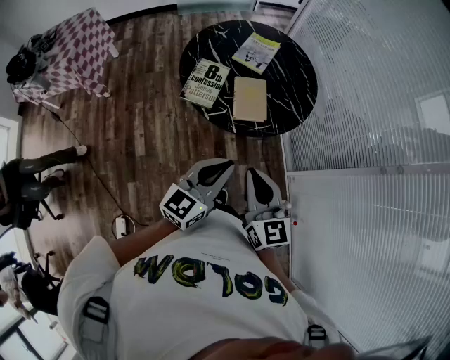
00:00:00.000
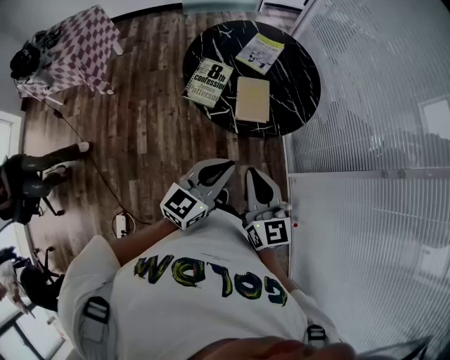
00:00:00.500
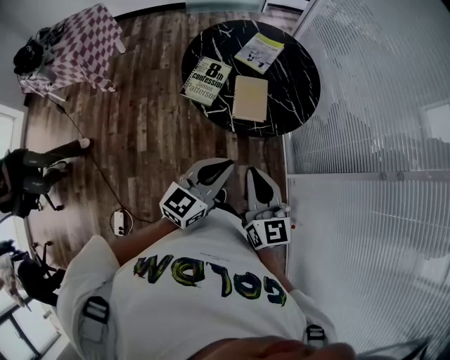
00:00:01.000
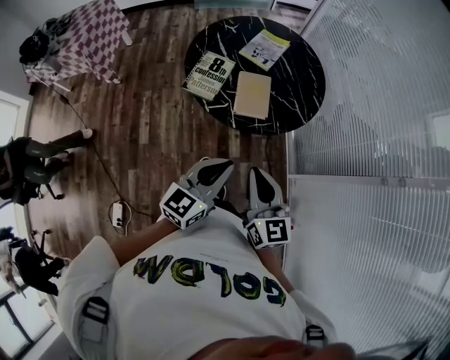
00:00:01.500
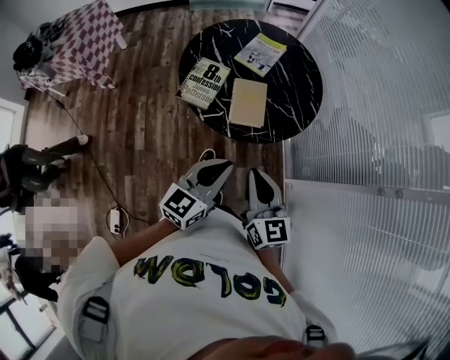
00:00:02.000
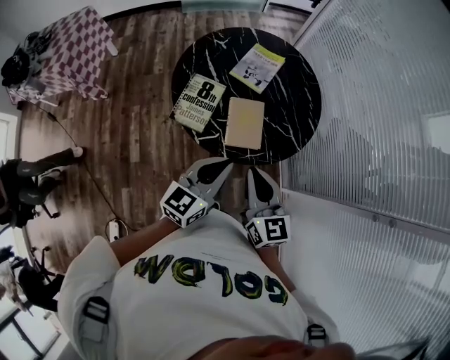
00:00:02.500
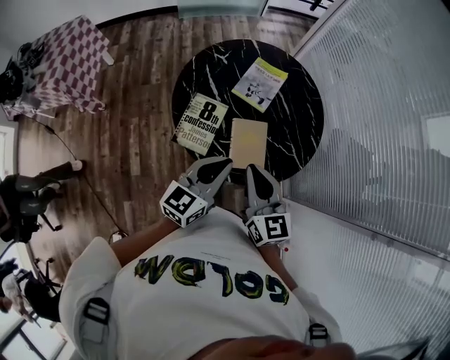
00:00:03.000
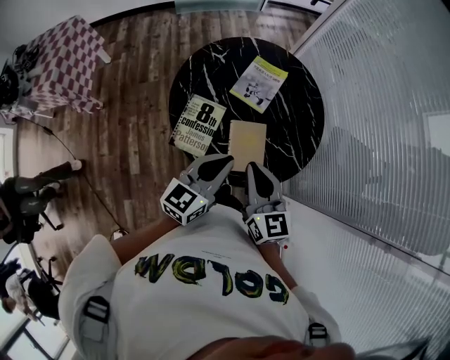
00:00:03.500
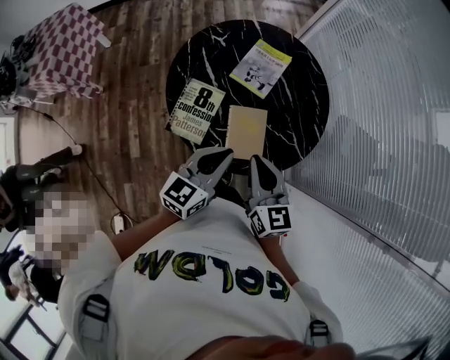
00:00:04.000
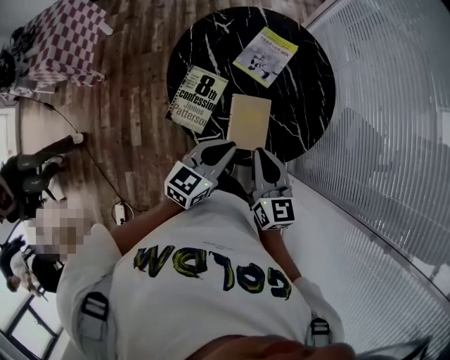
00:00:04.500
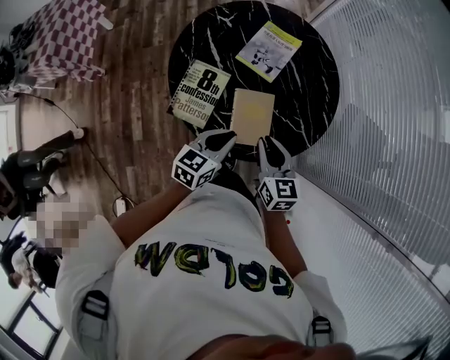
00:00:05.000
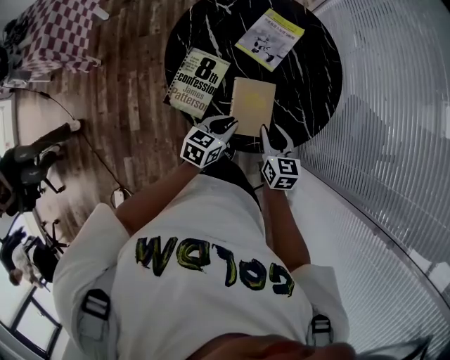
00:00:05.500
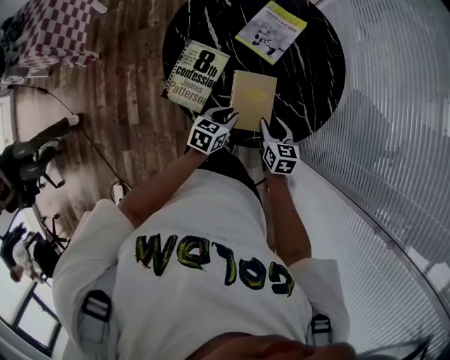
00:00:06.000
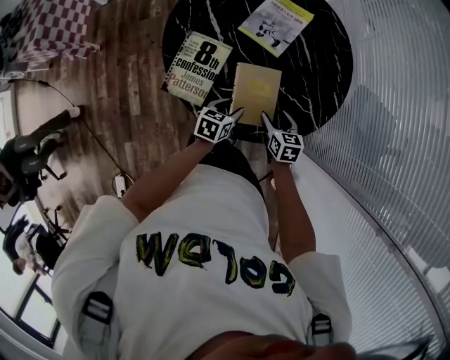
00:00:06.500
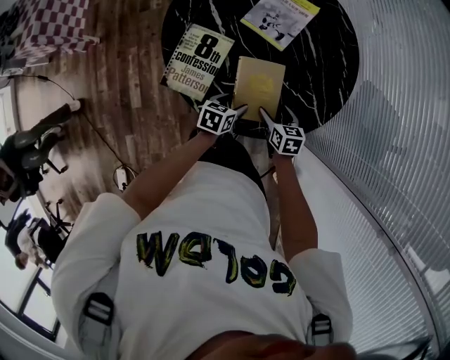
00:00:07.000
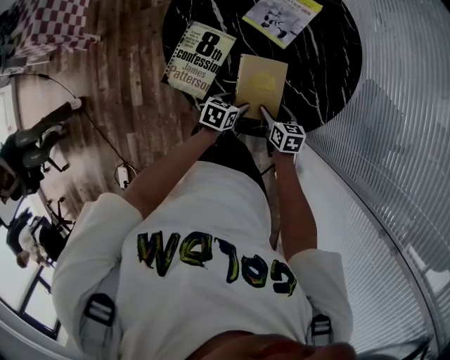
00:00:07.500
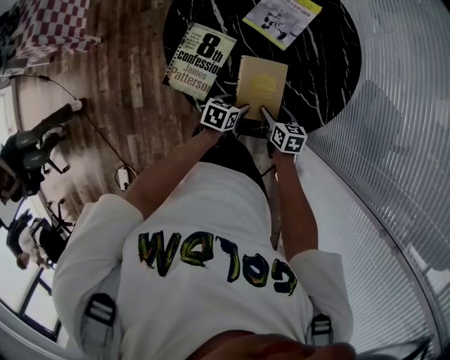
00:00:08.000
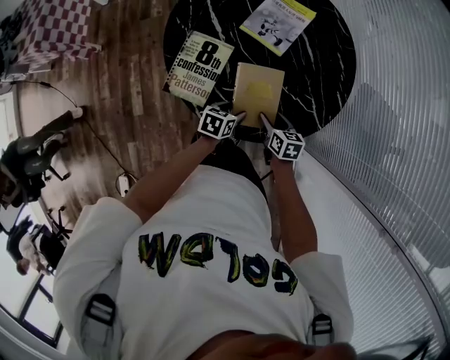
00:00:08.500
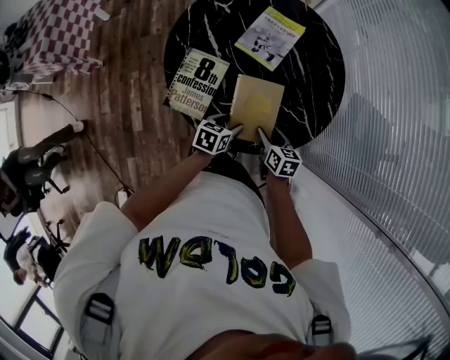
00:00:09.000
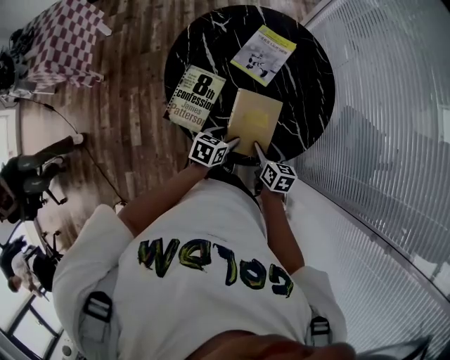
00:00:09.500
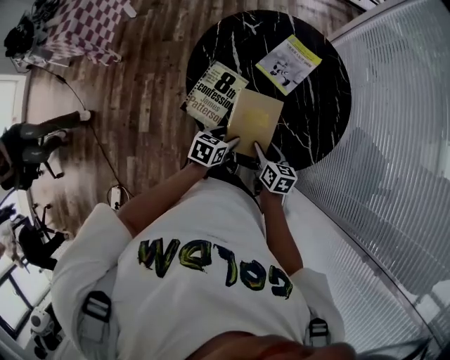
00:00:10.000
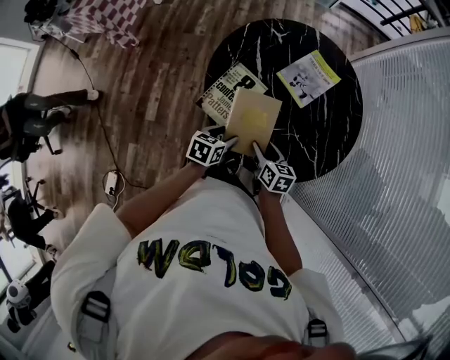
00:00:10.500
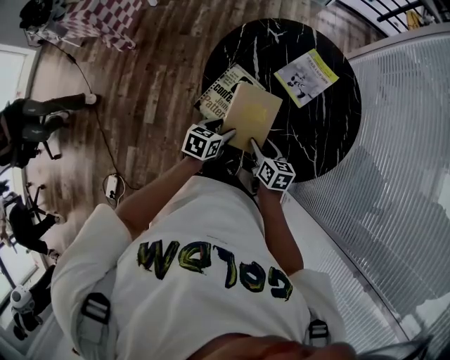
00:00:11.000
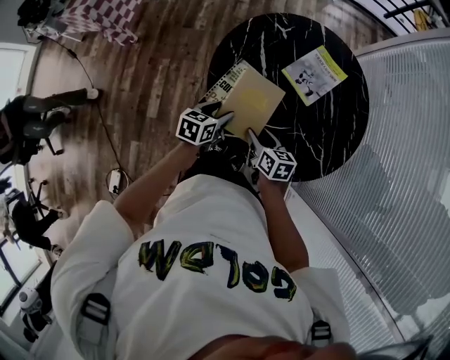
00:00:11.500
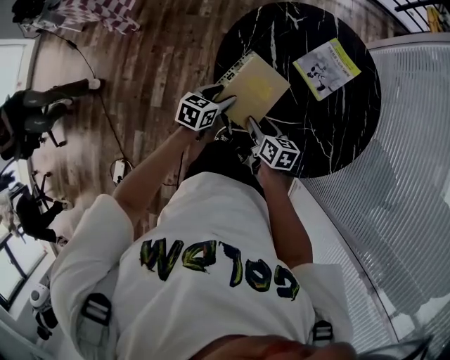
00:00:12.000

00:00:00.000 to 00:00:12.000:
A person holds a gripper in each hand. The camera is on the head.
00:00:00.000 to 00:00:02.000: The right gripper heads forward and to the right, covering approximately 5 cm. The left gripper shifts by about 5 cm.
00:00:02.000 to 00:00:04.000: The grippers both shift forward by roughly 25 cm.
00:00:04.000 to 00:00:06.000: Both grippers move downward, some 25 cm. The left gripper swivels approximately 30 degrees. Meanwhile the right gripper swivels about 30 degrees, and opens its fingers.
00:00:06.000 to 00:00:08.000: Both grippers travel together downward, roughly 10 cm. The left gripper opens up. Meanwhile the right gripper opens.
00:00:08.000 to 00:00:10.000: The two grippers go approximately 10 cm upward and to the left.
00:00:10.000 to 00:00:12.000: The left gripper shifts roughly 20 cm to the left and forward. The right gripper travels to the left by some 15 cm.

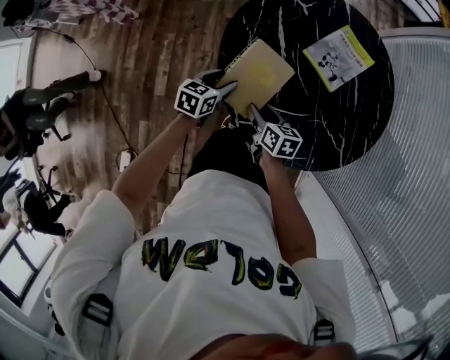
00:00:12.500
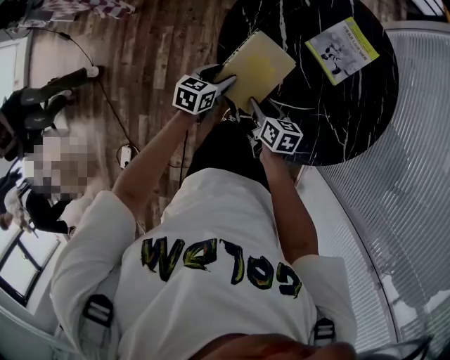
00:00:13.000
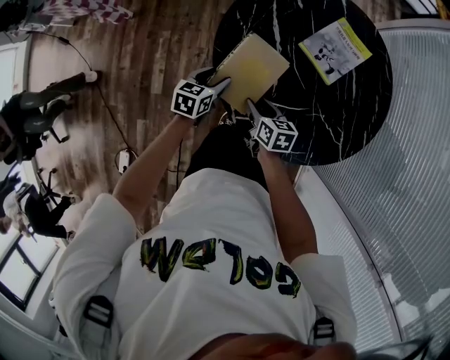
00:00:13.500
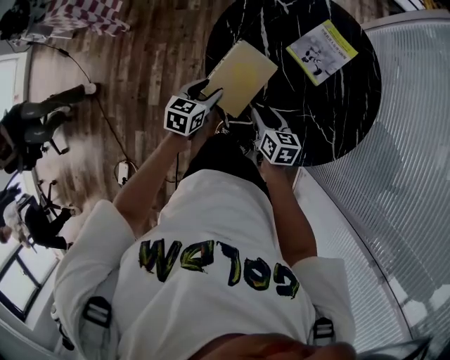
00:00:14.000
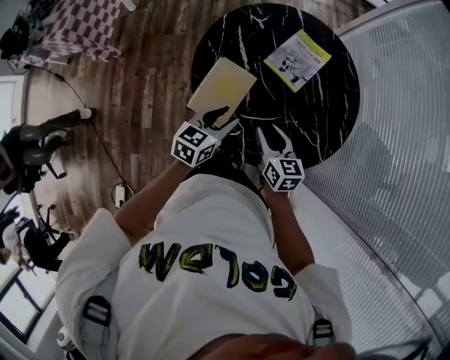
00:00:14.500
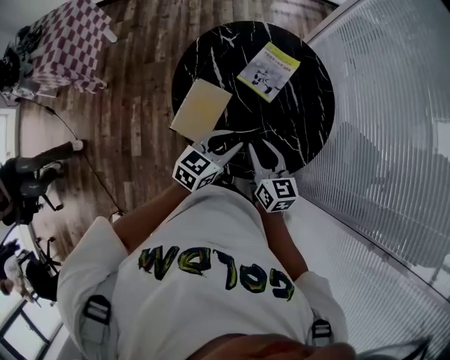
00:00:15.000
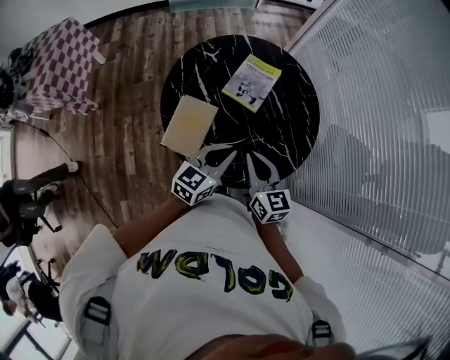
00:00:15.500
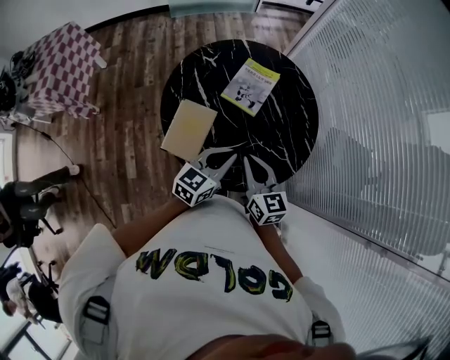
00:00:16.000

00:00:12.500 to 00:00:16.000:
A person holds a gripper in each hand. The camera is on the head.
00:00:12.500 to 00:00:14.500: The left gripper moves upward, to the right and backward, some 20 cm. The right gripper shifts some 15 cm upward and to the right, and rotates about 20 degrees.
00:00:14.500 to 00:00:16.000: The right gripper heads upward and to the right, covering some 10 cm, and closes up. The left gripper is displaced to the right and upward by roughly 15 cm, and closes its fingers.

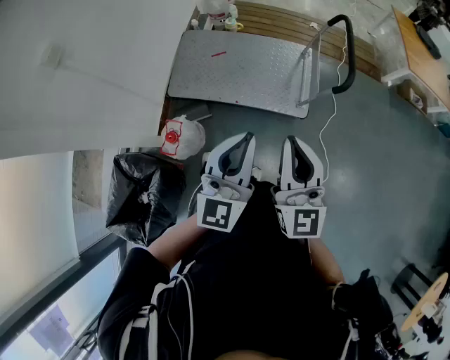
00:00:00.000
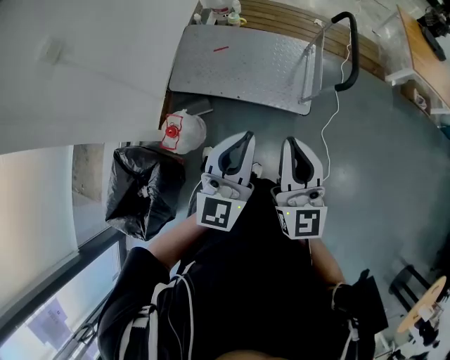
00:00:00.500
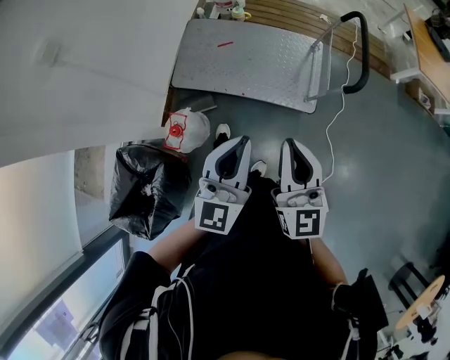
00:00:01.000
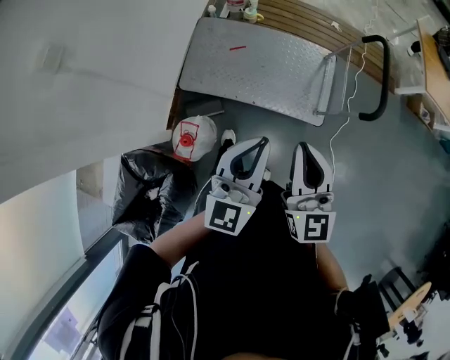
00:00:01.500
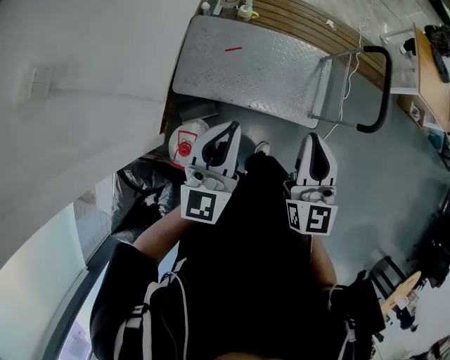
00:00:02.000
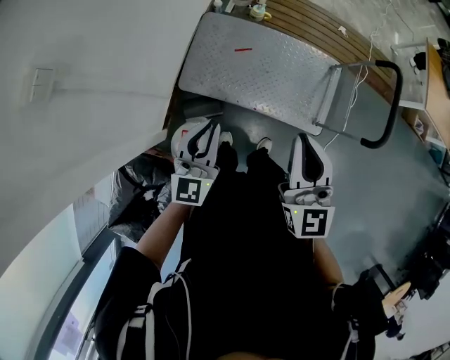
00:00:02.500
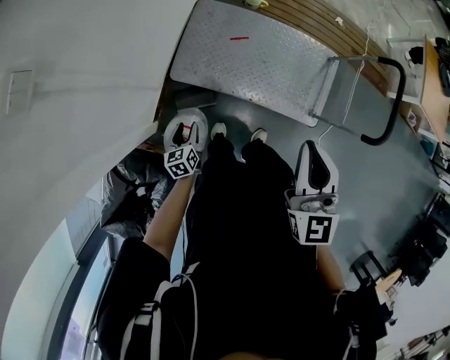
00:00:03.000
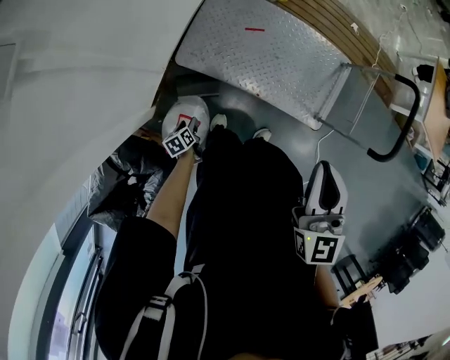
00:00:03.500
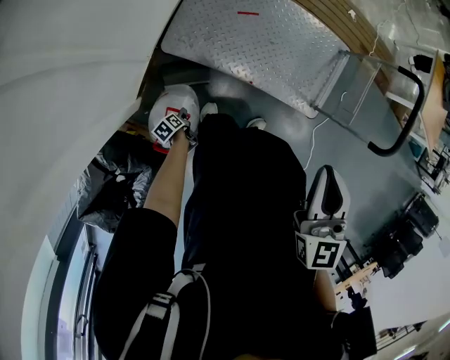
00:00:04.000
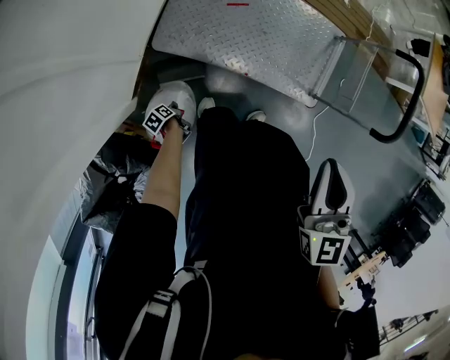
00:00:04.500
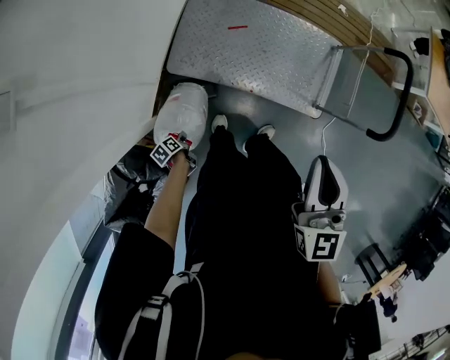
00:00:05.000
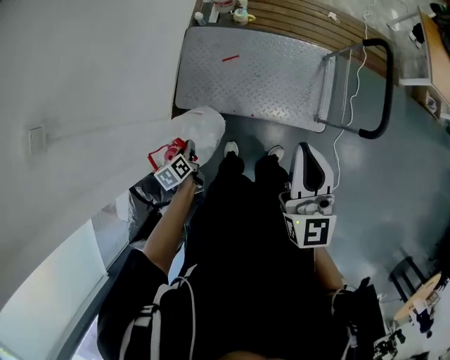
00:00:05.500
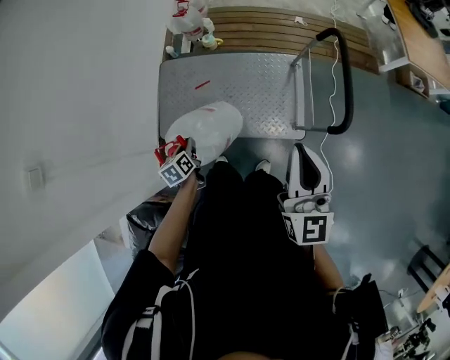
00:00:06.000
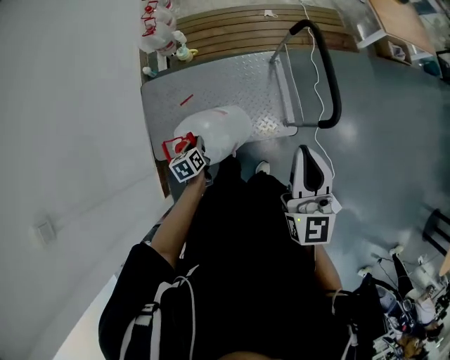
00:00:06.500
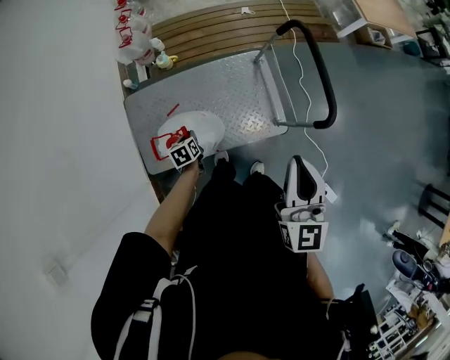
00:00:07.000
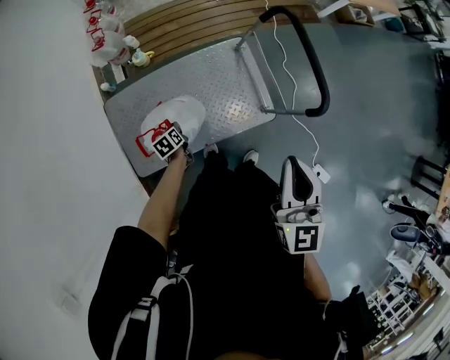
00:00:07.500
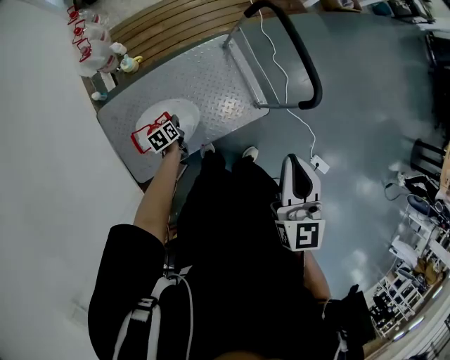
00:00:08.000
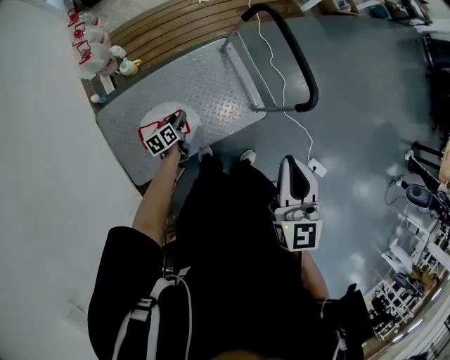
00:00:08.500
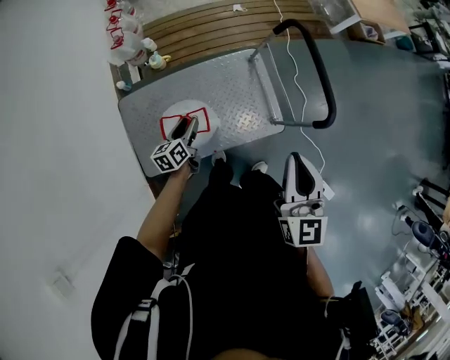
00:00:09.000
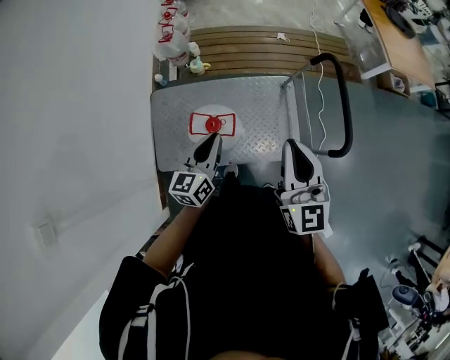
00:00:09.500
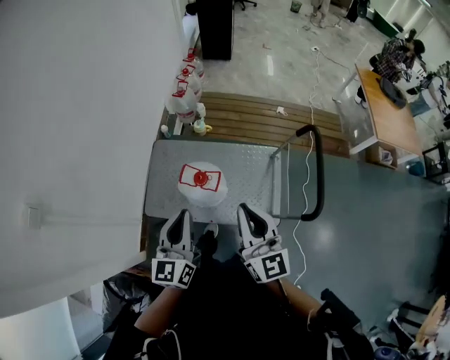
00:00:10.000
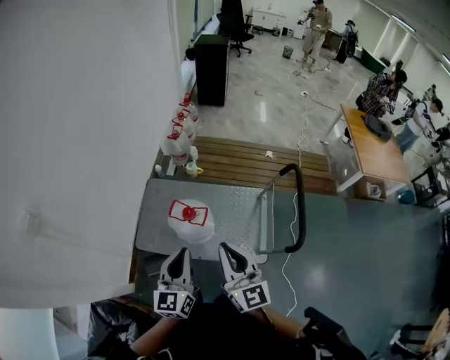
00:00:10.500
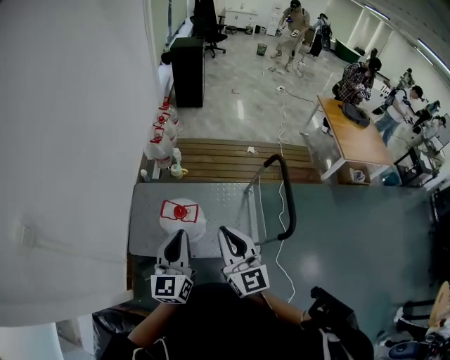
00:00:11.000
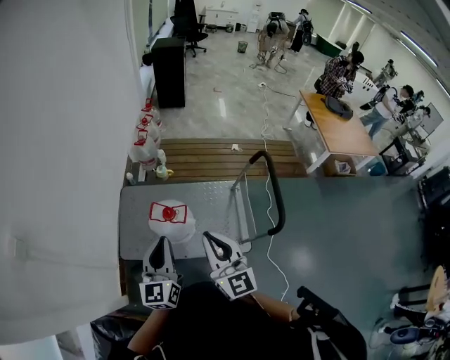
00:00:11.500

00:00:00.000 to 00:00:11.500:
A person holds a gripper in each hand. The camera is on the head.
00:00:00.000 to 00:00:02.000: The left gripper is displaced to the left and forward by roughly 30 cm, while the right gripper goes approximately 25 cm forward and to the left.
00:00:02.000 to 00:00:04.000: The left gripper is displaced downward by approximately 70 cm, angles its fingers downward, by roughly 70 degrees, and opens, while the right gripper is displaced downward and to the left by some 15 cm, and changes its angle by some 20 degrees.
00:00:04.000 to 00:00:06.000: The left gripper is displaced upward, to the right and forward by about 50 cm, twists approximately 40 degrees clockwise, seen from behind, and closes, while the right gripper moves to the right and upward, approximately 30 cm, and rotates about 30 degrees.
00:00:06.000 to 00:00:07.500: The right gripper moves some 10 cm, and swivels about 30 degrees, while the left gripper changes place by some 30 cm, and changes its angle by some 20 degrees.
00:00:07.500 to 00:00:09.500: The left gripper heads upward, covering about 35 cm, angles its fingers upward, by about 50 degrees, and opens, then closes once more. Meanwhile the right gripper shifts roughly 5 cm to the left, and turns by about 30 degrees.
00:00:09.500 to 00:00:11.500: The left gripper travels backward and upward by some 20 cm, and changes its angle by about 30 degrees; the right gripper goes approximately 10 cm backward.
